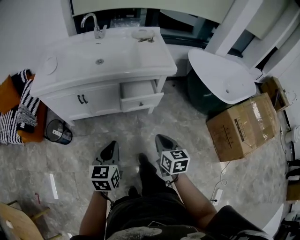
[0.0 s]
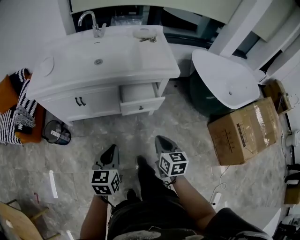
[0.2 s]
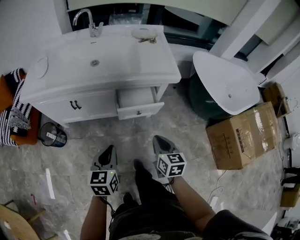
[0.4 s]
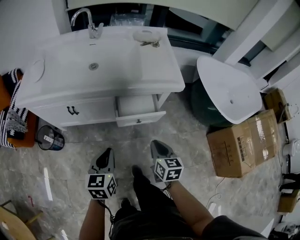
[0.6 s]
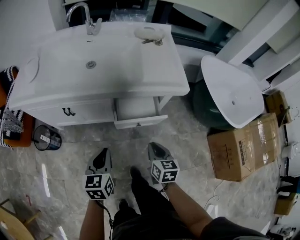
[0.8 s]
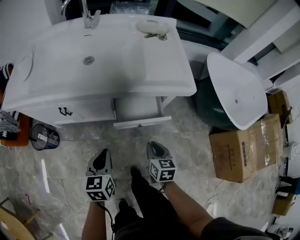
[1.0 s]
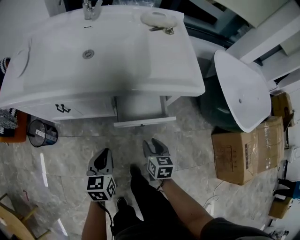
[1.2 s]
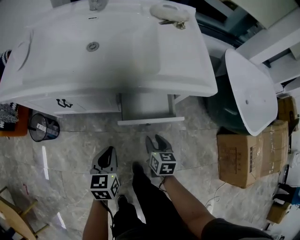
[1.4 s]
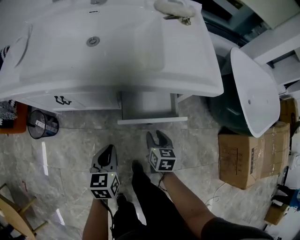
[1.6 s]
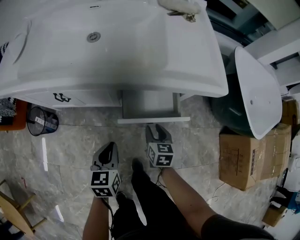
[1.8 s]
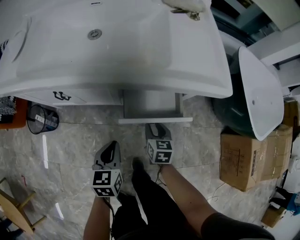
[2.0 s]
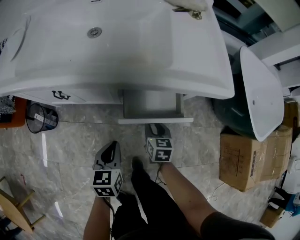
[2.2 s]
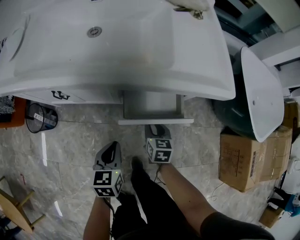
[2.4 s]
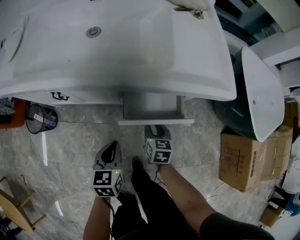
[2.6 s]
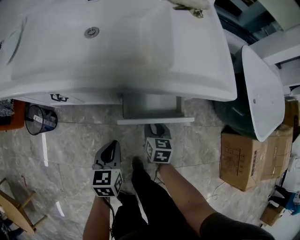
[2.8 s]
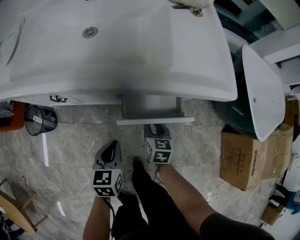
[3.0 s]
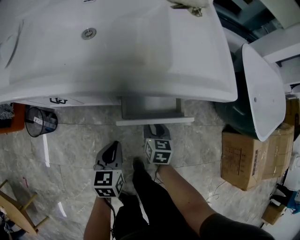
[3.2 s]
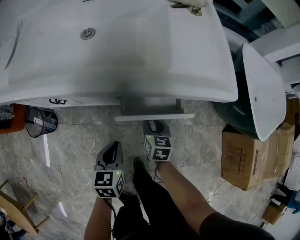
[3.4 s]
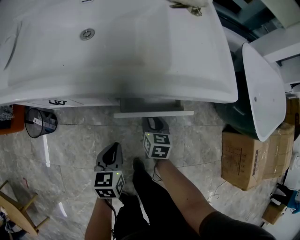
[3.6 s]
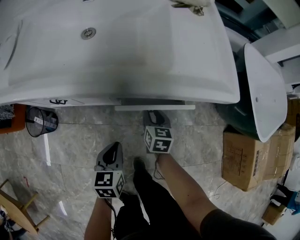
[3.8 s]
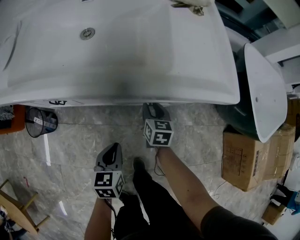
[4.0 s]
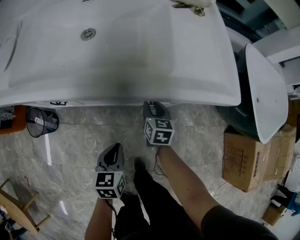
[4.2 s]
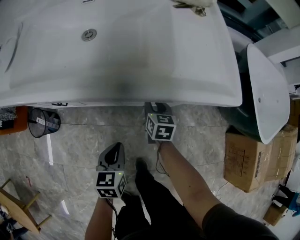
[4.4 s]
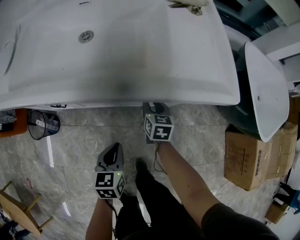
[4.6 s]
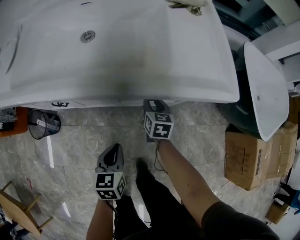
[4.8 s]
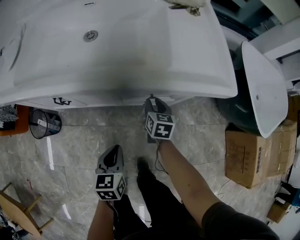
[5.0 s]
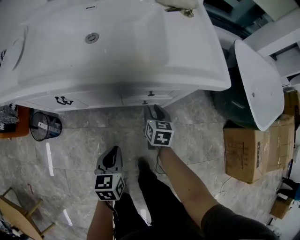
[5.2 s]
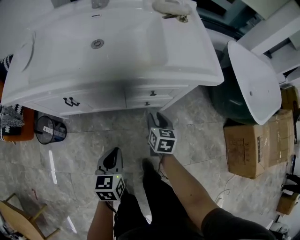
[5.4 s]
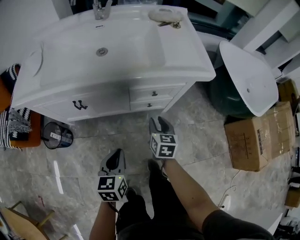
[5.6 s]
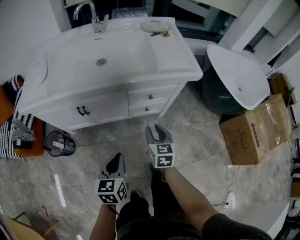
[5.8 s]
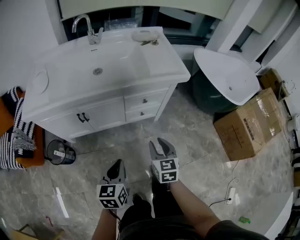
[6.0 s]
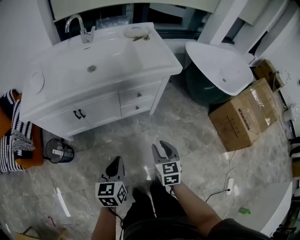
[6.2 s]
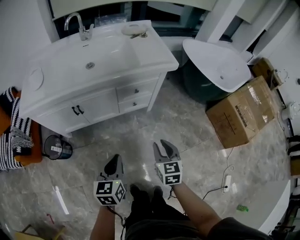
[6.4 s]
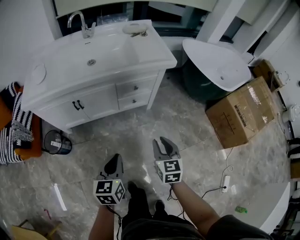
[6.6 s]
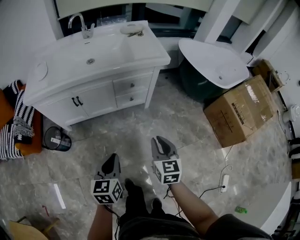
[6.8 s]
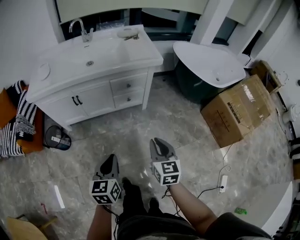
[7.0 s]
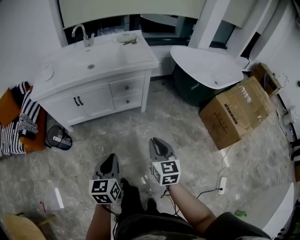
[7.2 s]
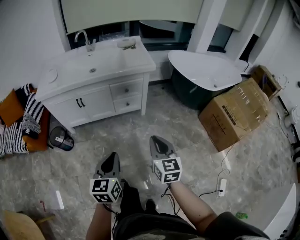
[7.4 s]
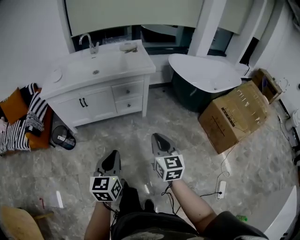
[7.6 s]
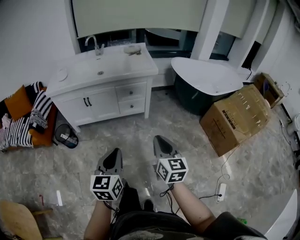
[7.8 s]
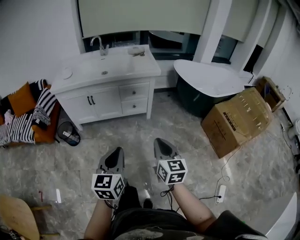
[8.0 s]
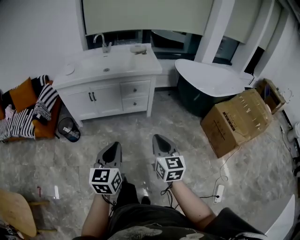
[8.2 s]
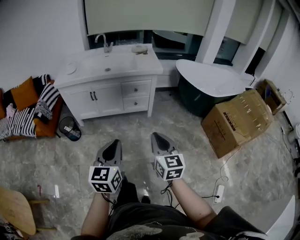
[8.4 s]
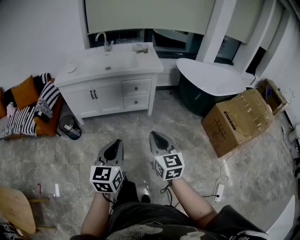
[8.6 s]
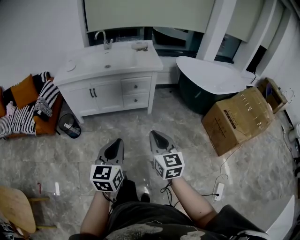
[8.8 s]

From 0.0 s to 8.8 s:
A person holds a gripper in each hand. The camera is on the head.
From 0.0 s to 1.4 s: Both grippers move forward and downward, some 30 cm. The right gripper opens its fingers.
From 1.4 s to 3.0 s: The left gripper shifts roughly 5 cm downward; the right gripper heads forward and downward, covering about 10 cm.
From 3.0 s to 4.4 s: The right gripper travels forward by about 10 cm.
From 4.4 s to 5.8 s: The left gripper is displaced backward, upward and to the left by approximately 20 cm. Meanwhile the right gripper travels backward and upward by about 30 cm.
From 5.8 s to 7.4 s: The two grippers go some 40 cm backward, upward and to the right. The right gripper closes.
From 7.4 s to 8.8 s: The grippers both shift backward and upward by about 15 cm.

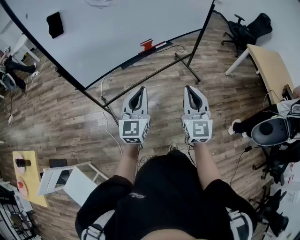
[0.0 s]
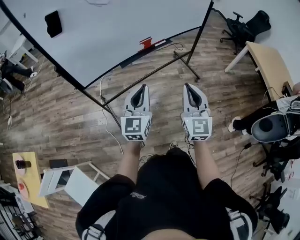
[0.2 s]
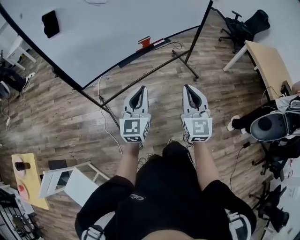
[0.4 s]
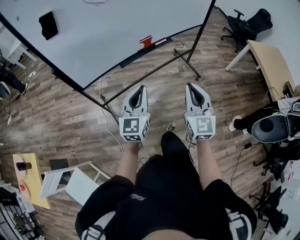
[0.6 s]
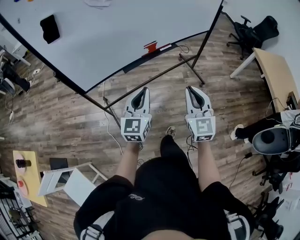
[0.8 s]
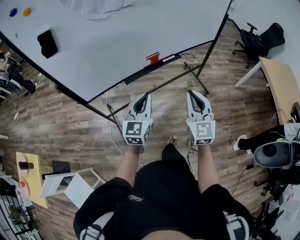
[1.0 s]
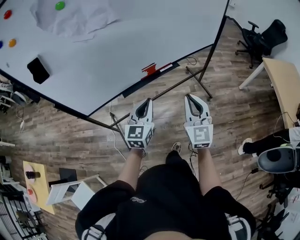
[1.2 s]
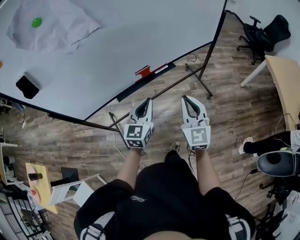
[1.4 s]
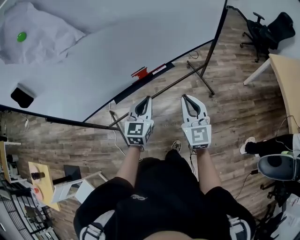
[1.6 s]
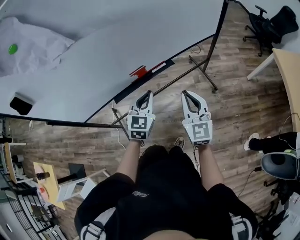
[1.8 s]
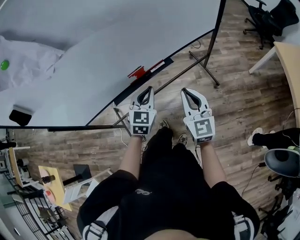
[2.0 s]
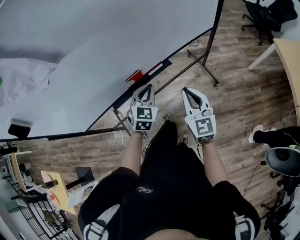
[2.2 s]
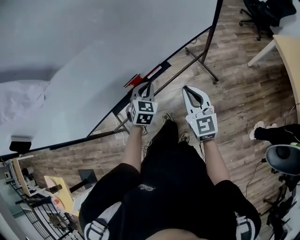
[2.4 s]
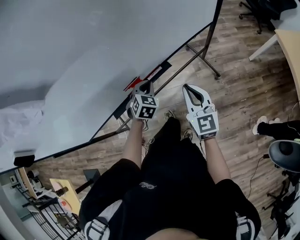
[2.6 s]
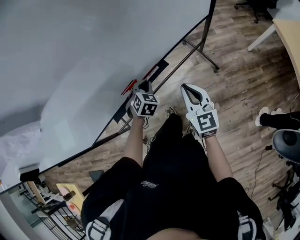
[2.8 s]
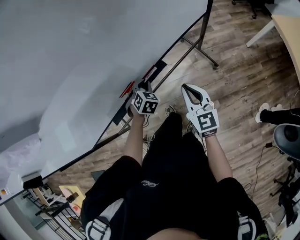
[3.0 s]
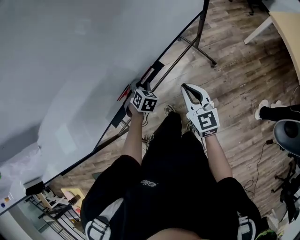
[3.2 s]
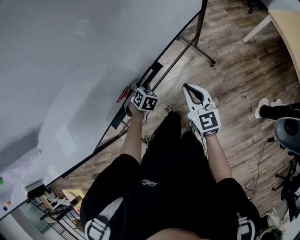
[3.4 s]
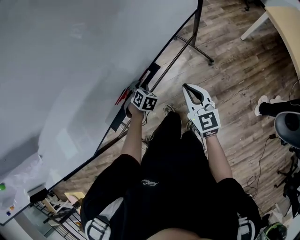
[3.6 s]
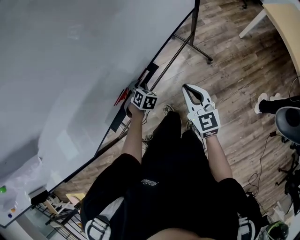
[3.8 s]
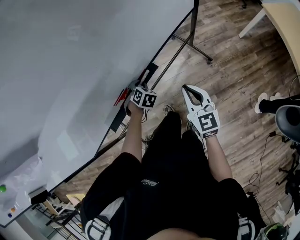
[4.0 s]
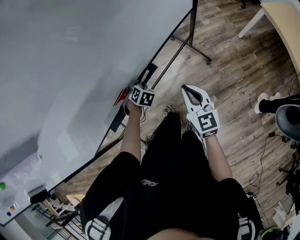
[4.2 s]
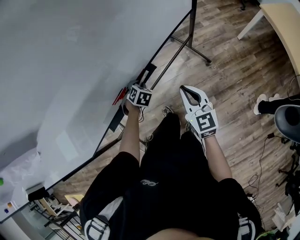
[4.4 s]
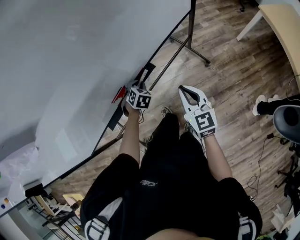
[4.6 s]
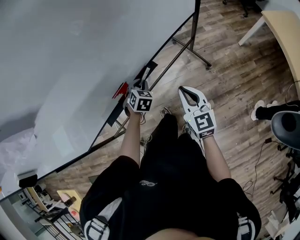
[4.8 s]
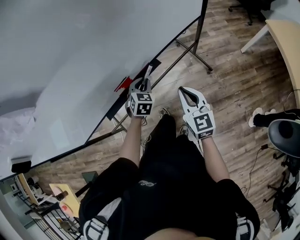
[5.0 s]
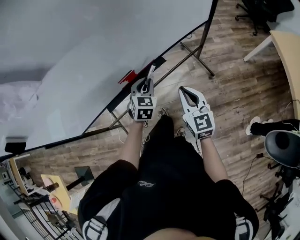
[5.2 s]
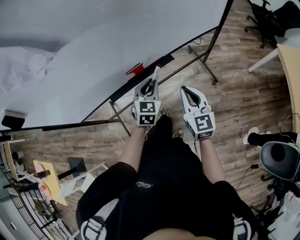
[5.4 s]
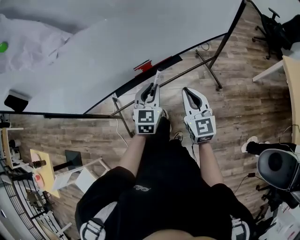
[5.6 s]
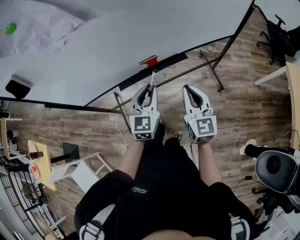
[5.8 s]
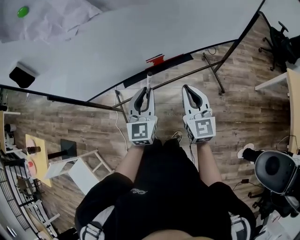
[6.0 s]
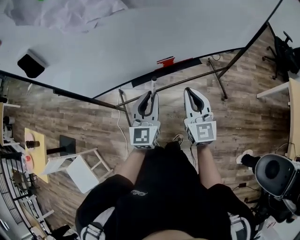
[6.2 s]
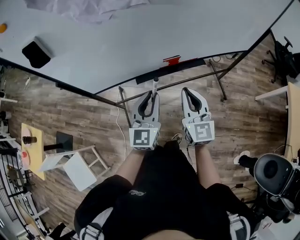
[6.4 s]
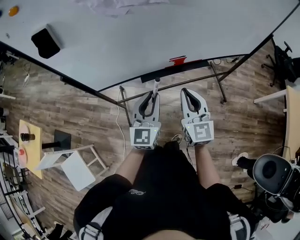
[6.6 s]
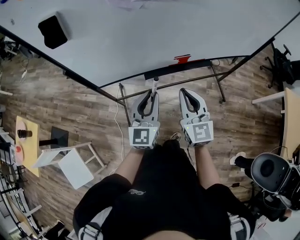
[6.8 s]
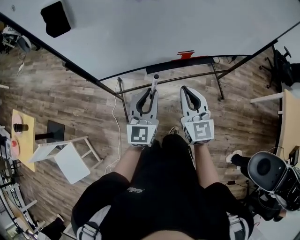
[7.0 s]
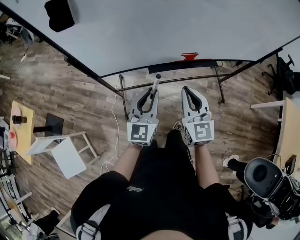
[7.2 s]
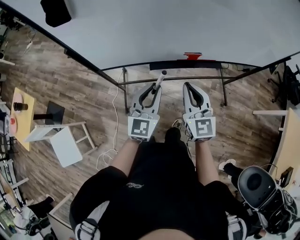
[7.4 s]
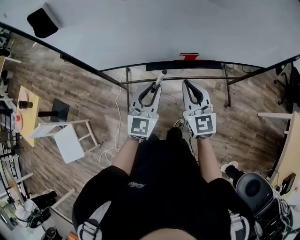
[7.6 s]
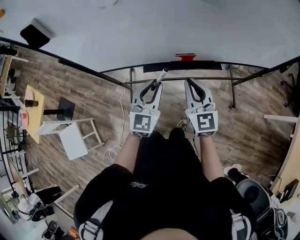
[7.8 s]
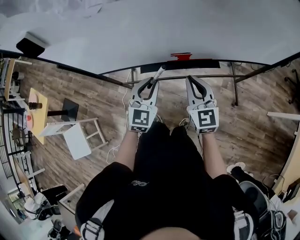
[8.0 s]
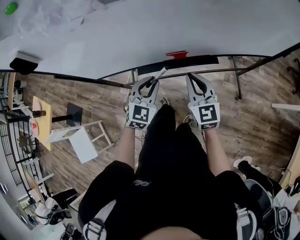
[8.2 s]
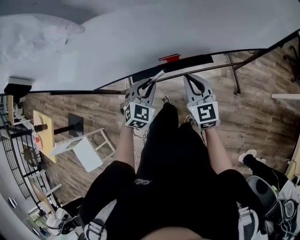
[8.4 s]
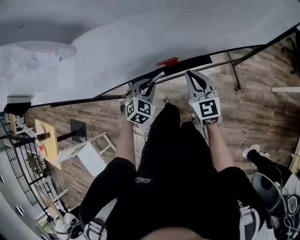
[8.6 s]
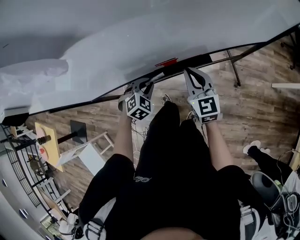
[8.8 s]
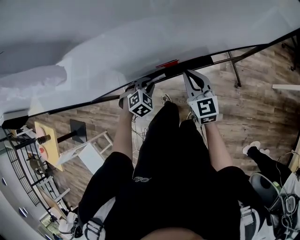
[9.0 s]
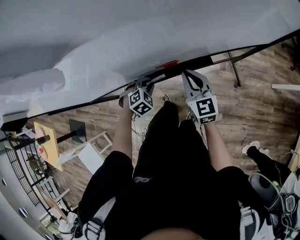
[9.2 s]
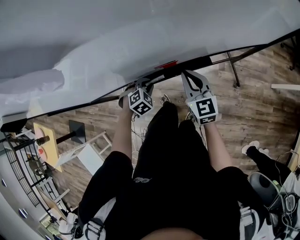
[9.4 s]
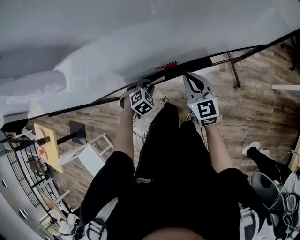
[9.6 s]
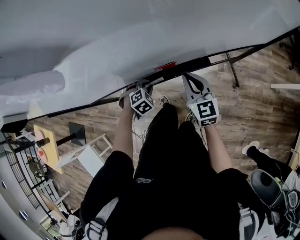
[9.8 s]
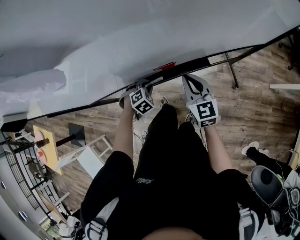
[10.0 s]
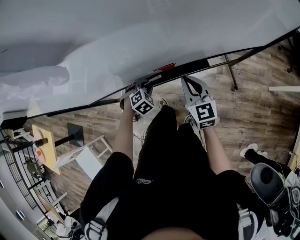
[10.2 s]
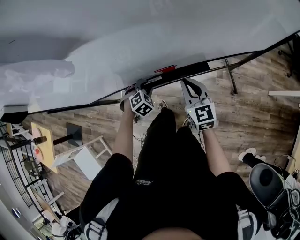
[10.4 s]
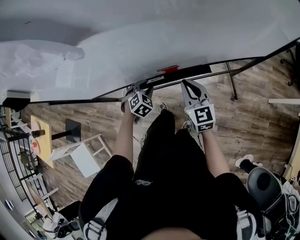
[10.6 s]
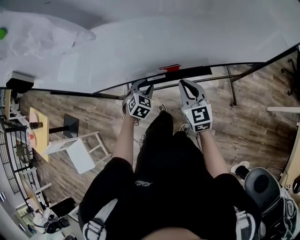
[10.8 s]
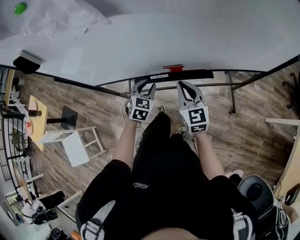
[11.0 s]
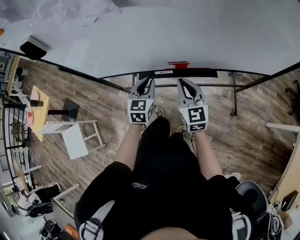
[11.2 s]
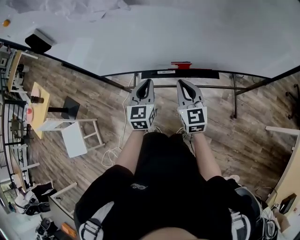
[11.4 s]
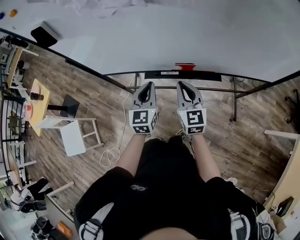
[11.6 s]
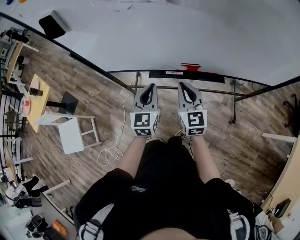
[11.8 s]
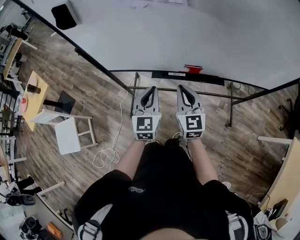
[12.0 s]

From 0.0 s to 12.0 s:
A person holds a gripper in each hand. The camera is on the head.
From 0.0 s to 1.6 s: Both grippers move forward, approximately 30 cm.
From 1.6 s to 3.0 s: The right gripper moves forward and downward, approximately 20 cm. The left gripper moves forward and downward, about 30 cm, and tips its fingers downward by roughly 40 degrees.
From 3.0 s to 4.4 s: The left gripper shifts about 5 cm downward.
From 4.4 s to 6.0 s: The left gripper moves upward, backward and to the left, some 35 cm, and angles its fingers upward, by roughly 60 degrees; the right gripper heads to the left, upward and backward, covering roughly 20 cm, and changes its angle by approximately 20 degrees.
From 6.0 s to 7.6 s: The two grippers go approximately 10 cm to the left.
From 7.6 s to 9.0 s: The right gripper moves forward, to the right and downward, about 20 cm, while the left gripper shifts about 25 cm downward and forward, and tips its fingers downward by roughly 50 degrees.
From 9.0 s to 10.4 s: The grippers make only small movements.
From 10.4 s to 12.0 s: The left gripper is displaced upward, backward and to the left by approximately 30 cm, points its fingers roughly 50 degrees further upward, and closes; the right gripper heads to the left, backward and upward, covering roughly 20 cm.

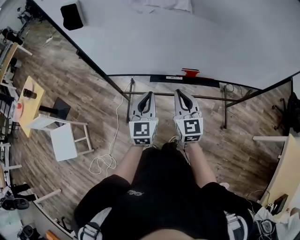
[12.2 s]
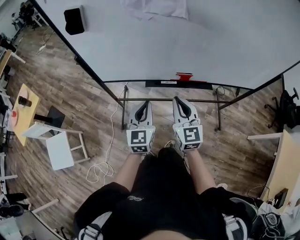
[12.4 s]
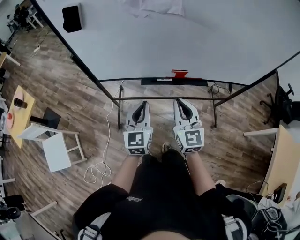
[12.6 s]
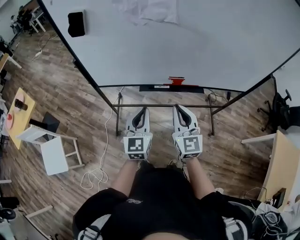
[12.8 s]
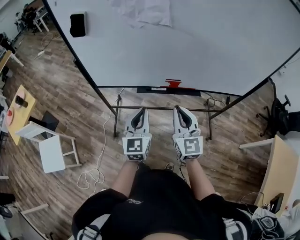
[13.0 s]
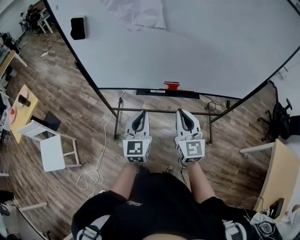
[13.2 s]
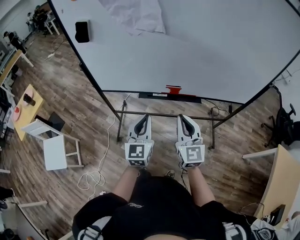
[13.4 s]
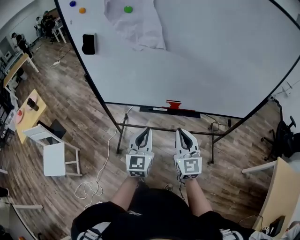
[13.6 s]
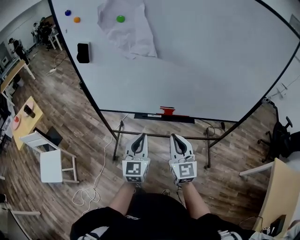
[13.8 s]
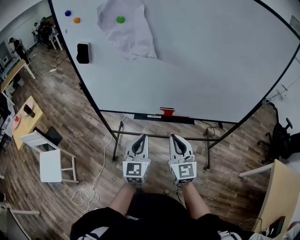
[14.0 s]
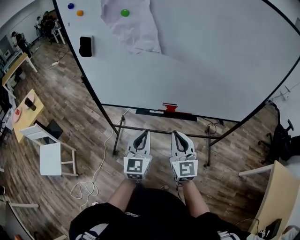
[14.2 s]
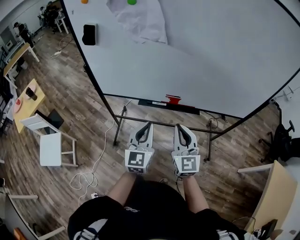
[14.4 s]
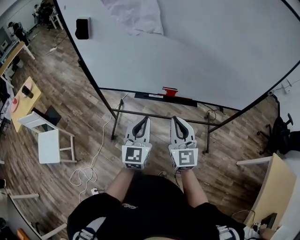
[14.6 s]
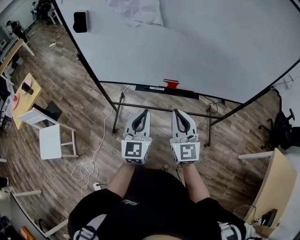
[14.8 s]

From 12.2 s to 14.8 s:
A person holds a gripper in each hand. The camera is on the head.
From 12.2 s to 13.4 s: Both grippers move backward, to the right and upward, approximately 15 cm.
From 13.4 s to 14.8 s: The grippers stay close to where they were, moving slightly.
